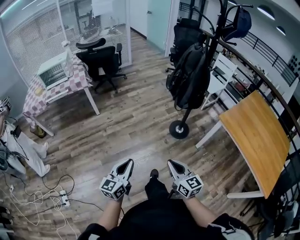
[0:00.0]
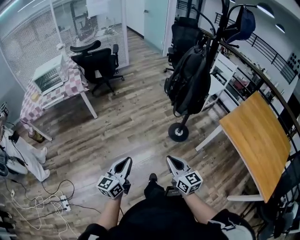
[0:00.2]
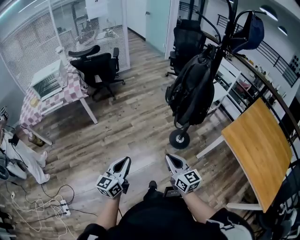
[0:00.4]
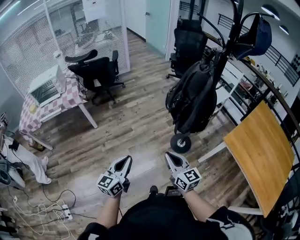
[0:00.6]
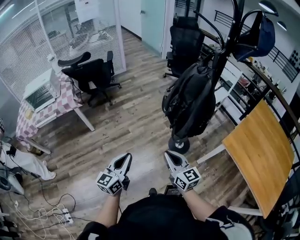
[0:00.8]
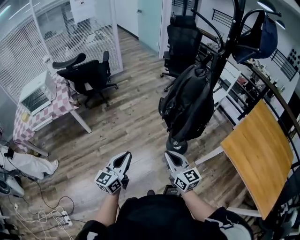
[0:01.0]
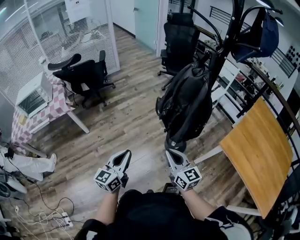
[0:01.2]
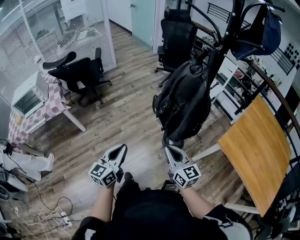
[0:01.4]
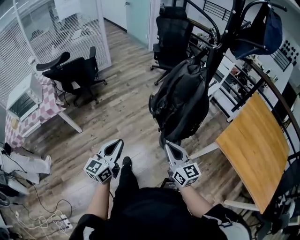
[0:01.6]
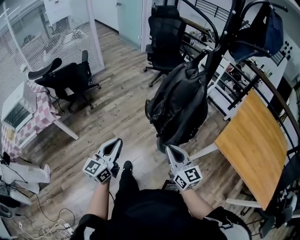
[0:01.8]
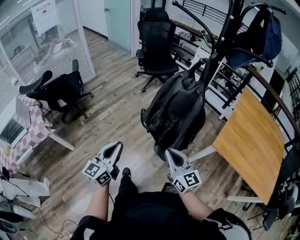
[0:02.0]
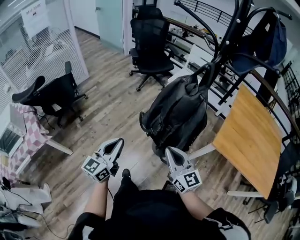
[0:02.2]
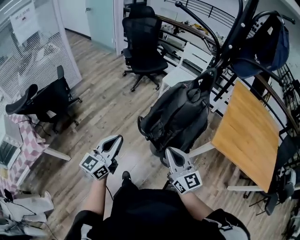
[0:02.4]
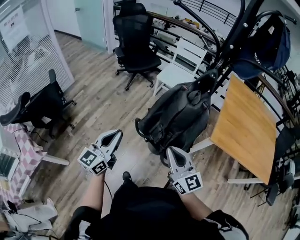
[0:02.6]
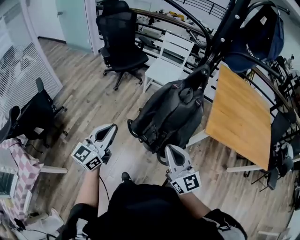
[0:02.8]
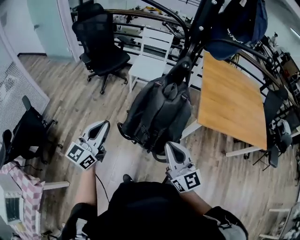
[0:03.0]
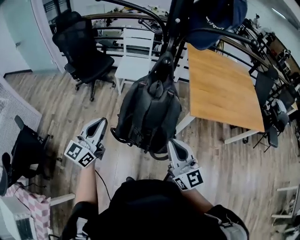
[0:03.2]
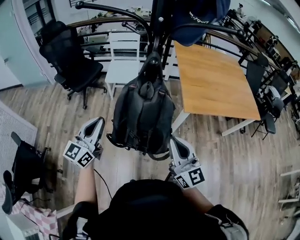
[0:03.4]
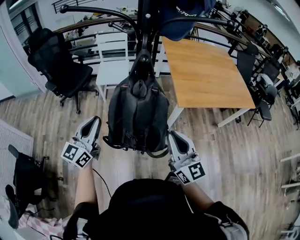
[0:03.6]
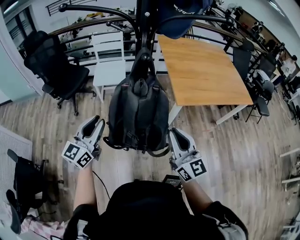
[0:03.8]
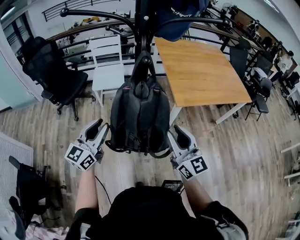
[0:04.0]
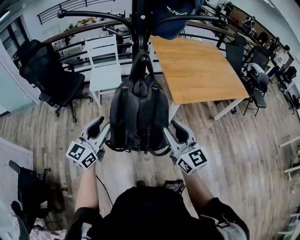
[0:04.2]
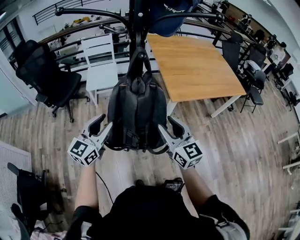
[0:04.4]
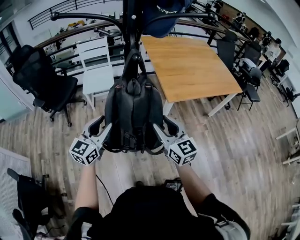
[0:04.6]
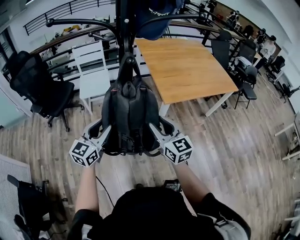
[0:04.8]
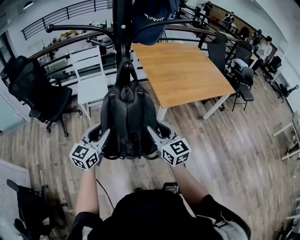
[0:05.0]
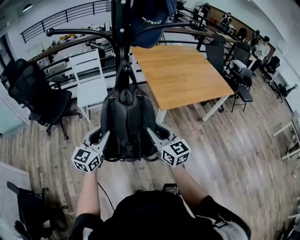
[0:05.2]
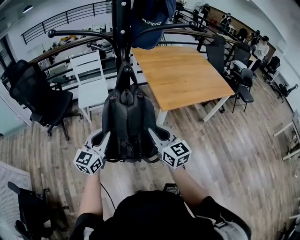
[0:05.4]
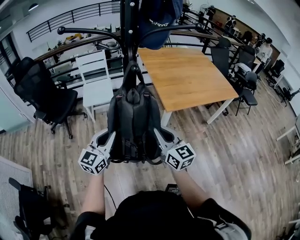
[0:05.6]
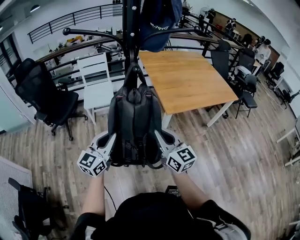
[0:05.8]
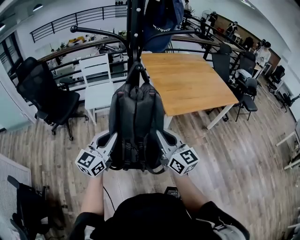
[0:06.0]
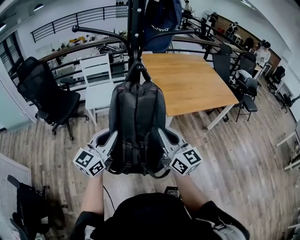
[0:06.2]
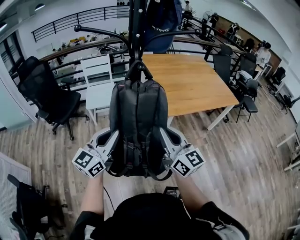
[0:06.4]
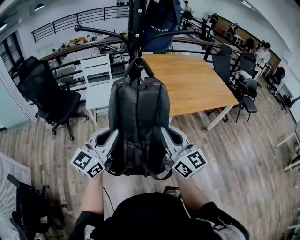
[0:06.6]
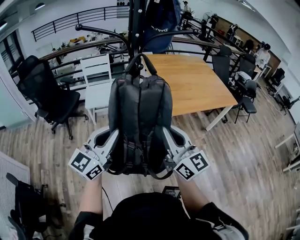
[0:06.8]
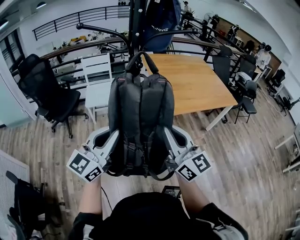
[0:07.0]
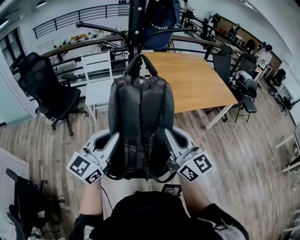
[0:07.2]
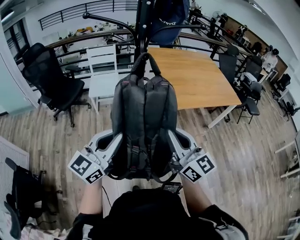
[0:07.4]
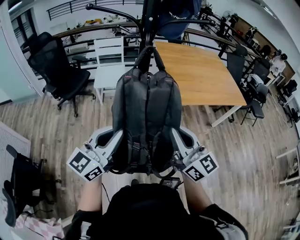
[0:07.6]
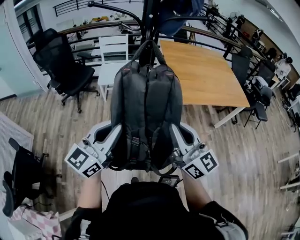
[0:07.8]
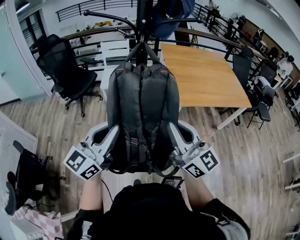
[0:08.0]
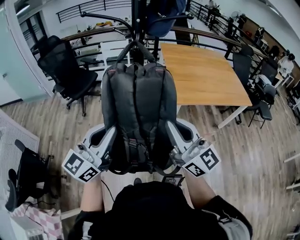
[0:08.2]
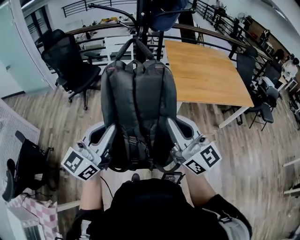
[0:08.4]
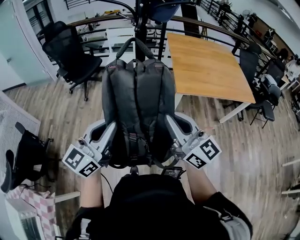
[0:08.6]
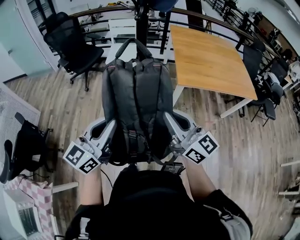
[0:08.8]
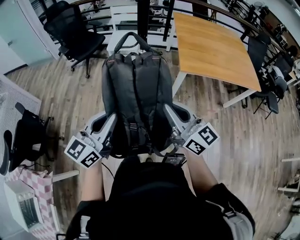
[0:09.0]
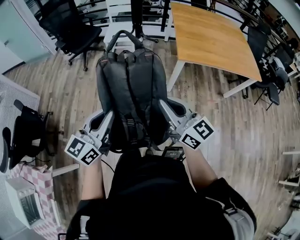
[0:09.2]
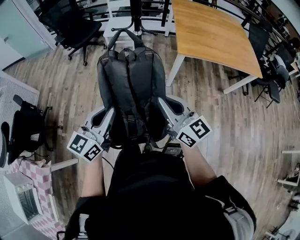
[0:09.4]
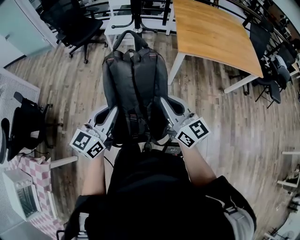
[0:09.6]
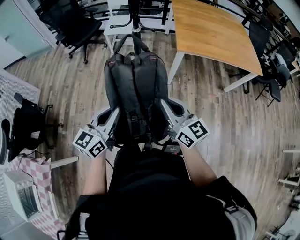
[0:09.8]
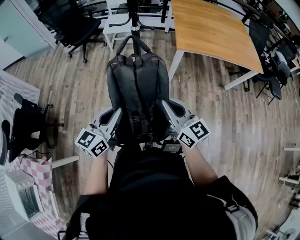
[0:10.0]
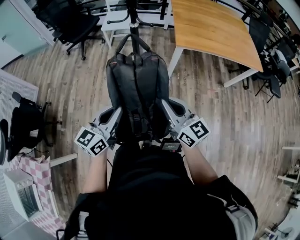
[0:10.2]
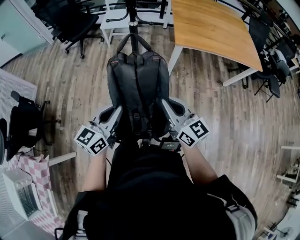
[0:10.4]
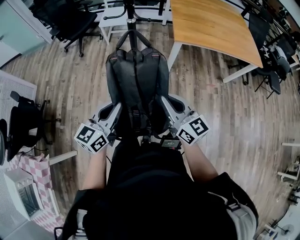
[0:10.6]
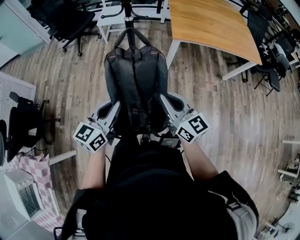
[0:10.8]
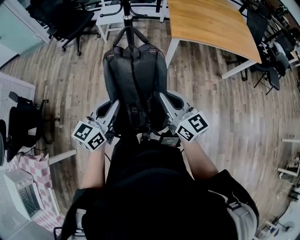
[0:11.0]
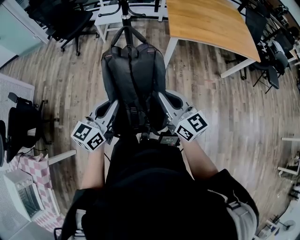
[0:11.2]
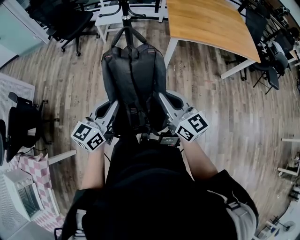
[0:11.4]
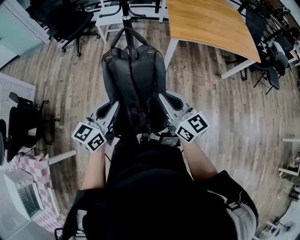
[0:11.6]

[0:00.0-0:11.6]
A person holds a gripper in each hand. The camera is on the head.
0:00.0 to 0:01.4: Both grippers move forward, some 35 cm.
0:01.4 to 0:02.8: The left gripper ends up about 30 cm from where it was, and changes its angle by approximately 40 degrees; the right gripper ends up some 15 cm from where it was, and rotates roughly 40 degrees.
0:02.8 to 0:04.4: The right gripper changes place by roughly 10 cm, changes its angle by about 40 degrees, and opens up. Meanwhile the left gripper ends up roughly 15 cm from where it was, swivels roughly 40 degrees, and opens its fingers.
0:04.4 to 0:05.8: The left gripper closes, while the right gripper closes its fingers.
0:05.8 to 0:07.2: Both grippers travel together upward and backward, some 15 cm.
0:07.2 to 0:08.8: The right gripper moves backward and to the right, about 10 cm, and swivels about 30 degrees. Meanwhile the left gripper shifts approximately 15 cm backward.
0:08.8 to 0:10.2: Both grippers travel together downward and backward, some 15 cm.
0:10.2 to 0:11.6: Both grippers stay put.

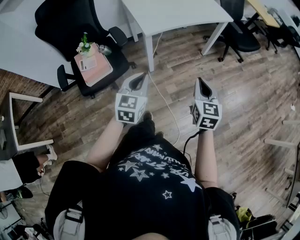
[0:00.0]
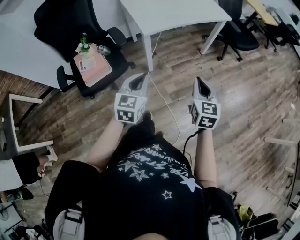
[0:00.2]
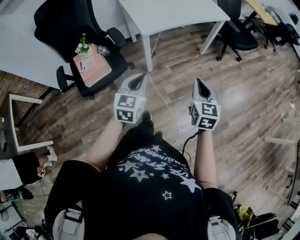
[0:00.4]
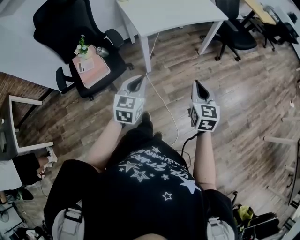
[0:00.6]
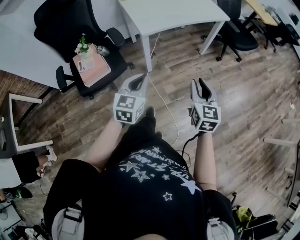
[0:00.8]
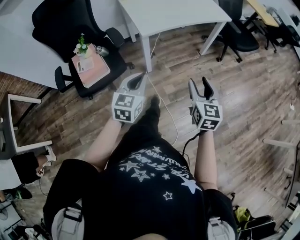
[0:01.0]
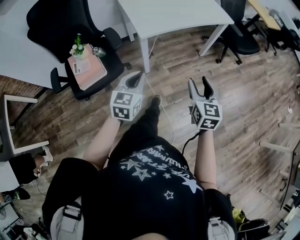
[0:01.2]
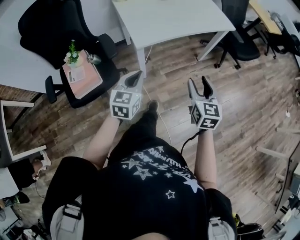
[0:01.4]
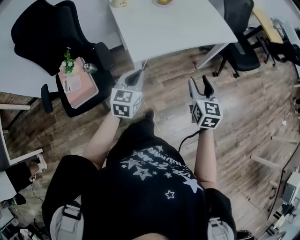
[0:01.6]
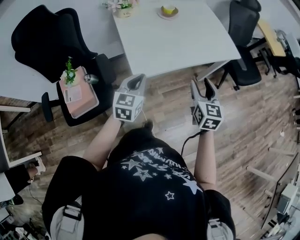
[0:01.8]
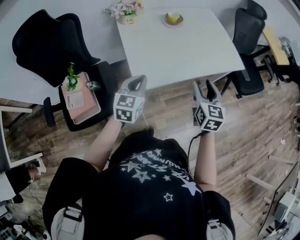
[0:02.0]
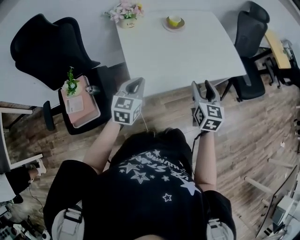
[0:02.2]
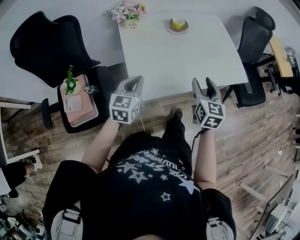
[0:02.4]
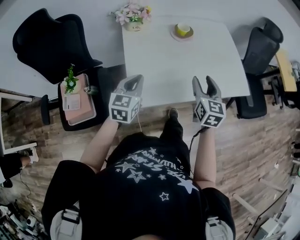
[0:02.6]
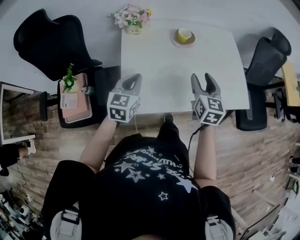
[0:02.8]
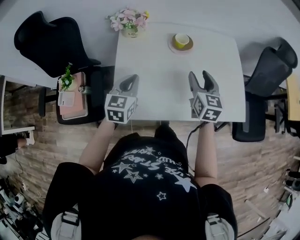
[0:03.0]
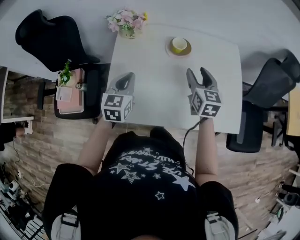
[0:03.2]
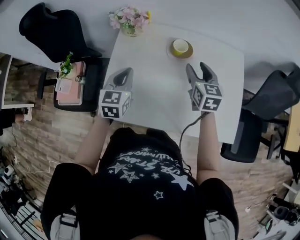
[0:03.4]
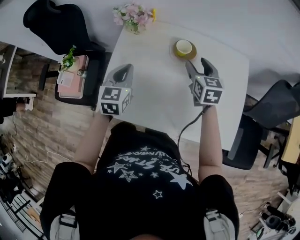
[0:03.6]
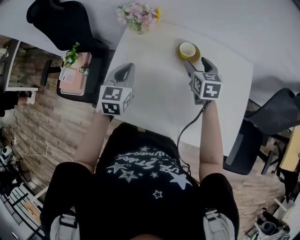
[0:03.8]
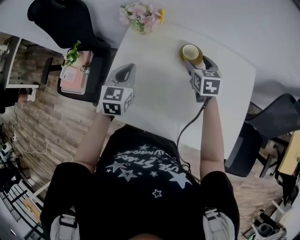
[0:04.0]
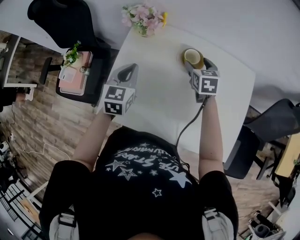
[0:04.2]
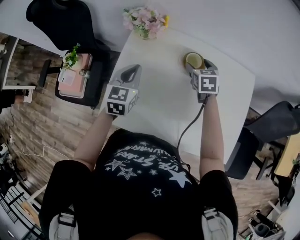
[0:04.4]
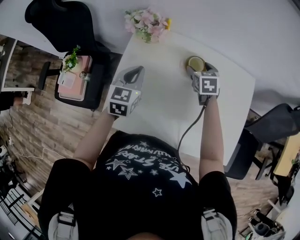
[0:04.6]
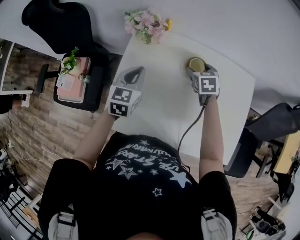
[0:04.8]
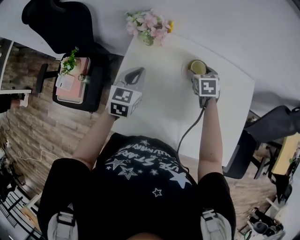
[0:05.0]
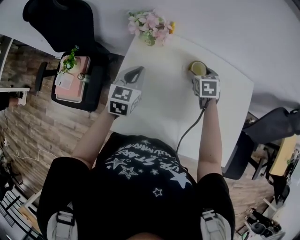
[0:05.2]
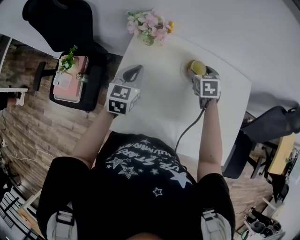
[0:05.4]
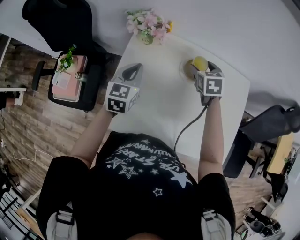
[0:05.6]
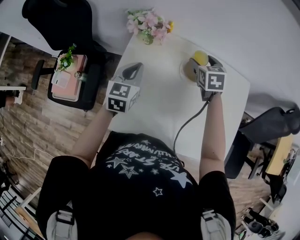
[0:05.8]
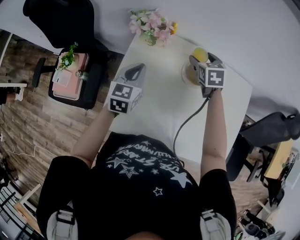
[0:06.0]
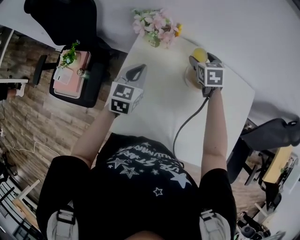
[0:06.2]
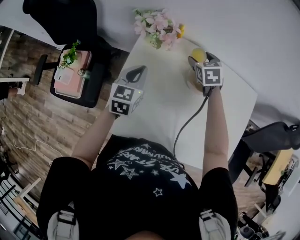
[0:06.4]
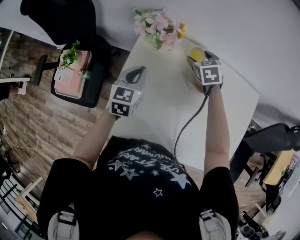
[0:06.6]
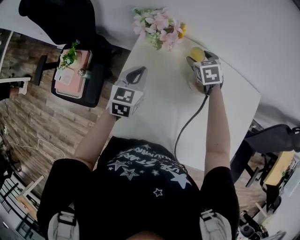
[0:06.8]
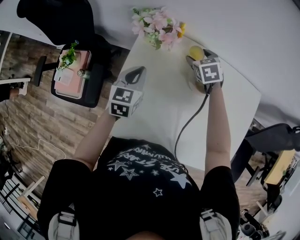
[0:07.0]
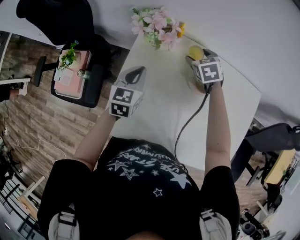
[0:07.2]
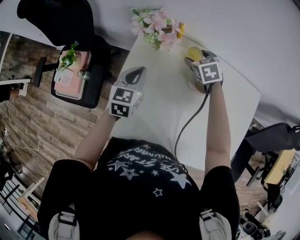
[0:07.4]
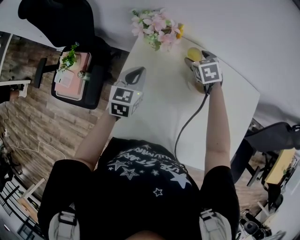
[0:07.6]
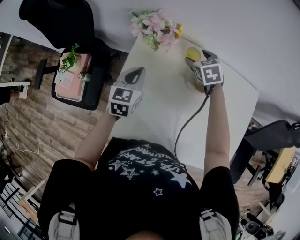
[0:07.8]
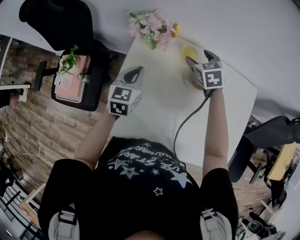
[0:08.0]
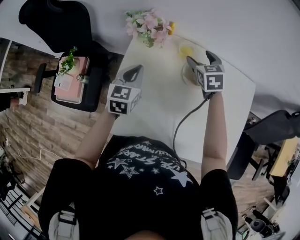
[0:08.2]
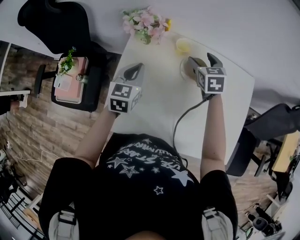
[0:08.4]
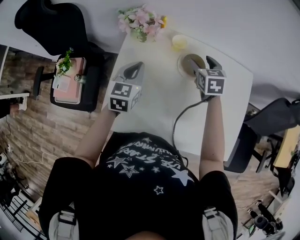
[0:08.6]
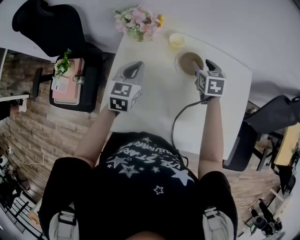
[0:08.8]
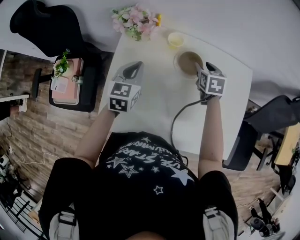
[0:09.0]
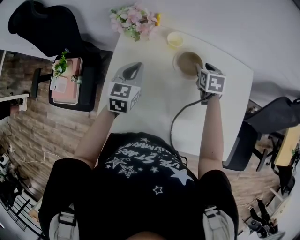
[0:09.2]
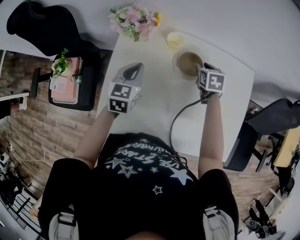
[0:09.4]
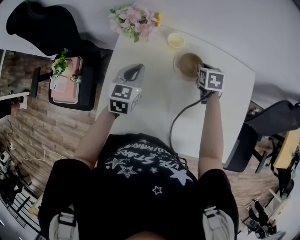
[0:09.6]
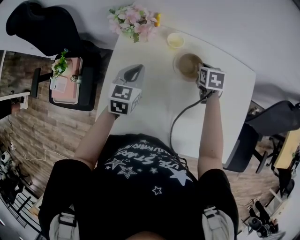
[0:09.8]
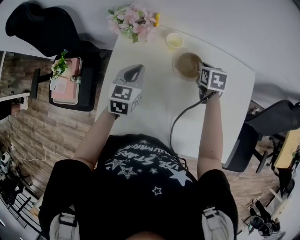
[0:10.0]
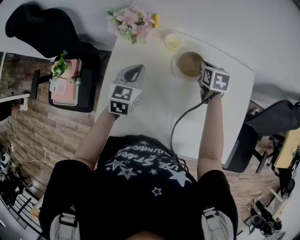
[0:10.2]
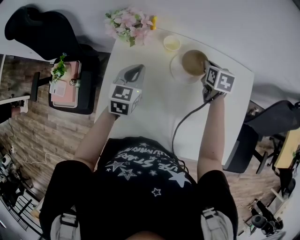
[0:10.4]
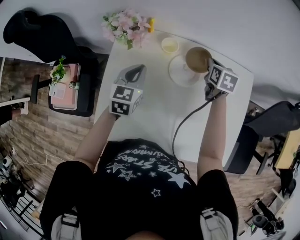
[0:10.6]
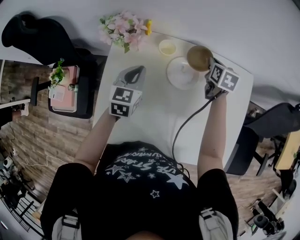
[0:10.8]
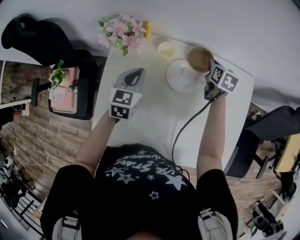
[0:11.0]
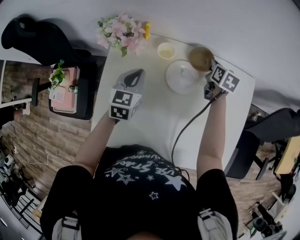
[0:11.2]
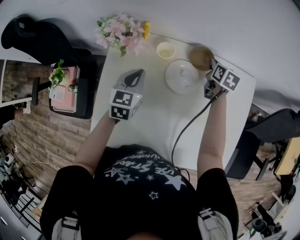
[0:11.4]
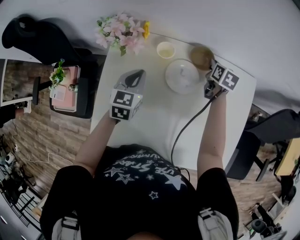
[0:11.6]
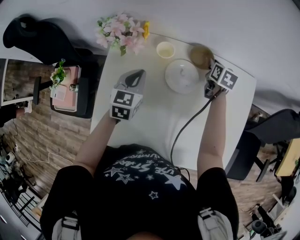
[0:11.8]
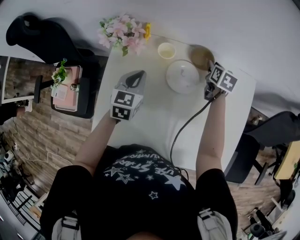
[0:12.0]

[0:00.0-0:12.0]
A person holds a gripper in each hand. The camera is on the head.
0:00.0 to 0:01.6: The two grippers go some 25 cm forward. The right gripper opens.
0:01.6 to 0:03.0: Both grippers travel together forward, some 40 cm. The right gripper swivels approximately 20 degrees; the left gripper changes its angle by roughly 20 degrees.
0:03.0 to 0:04.4: The left gripper moves forward, roughly 10 cm. Meanwhile the right gripper is displaced forward and downward by approximately 25 cm, and changes its angle by about 30 degrees.
0:04.4 to 0:06.0: The right gripper is displaced forward by about 5 cm; the left gripper ends up some 5 cm from where it was.
0:06.0 to 0:07.6: The right gripper heads downward, covering some 5 cm.
0:07.6 to 0:09.0: The right gripper goes approximately 15 cm to the right and backward, changes its angle by some 30 degrees, and closes its fingers, while the left gripper is displaced to the right by about 5 cm.
0:09.0 to 0:10.4: The right gripper moves about 5 cm, and closes.
0:10.4 to 0:12.0: The right gripper is displaced forward and to the right by approximately 10 cm.
